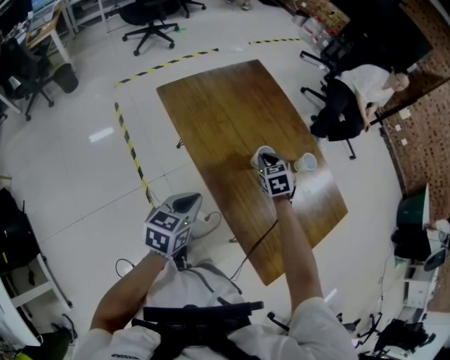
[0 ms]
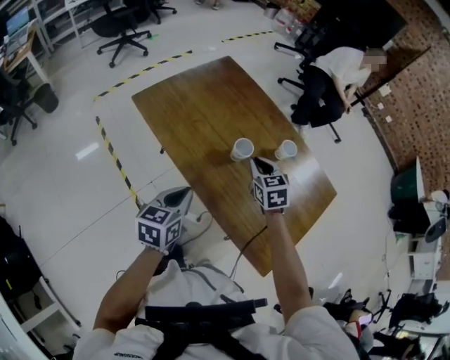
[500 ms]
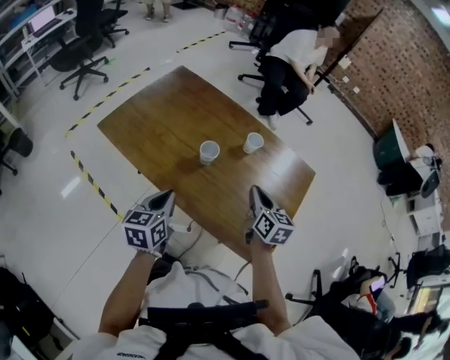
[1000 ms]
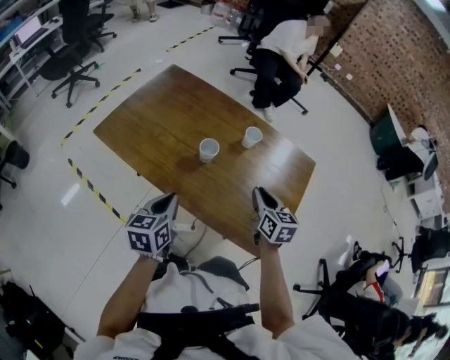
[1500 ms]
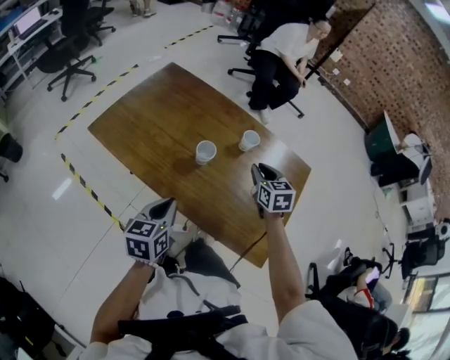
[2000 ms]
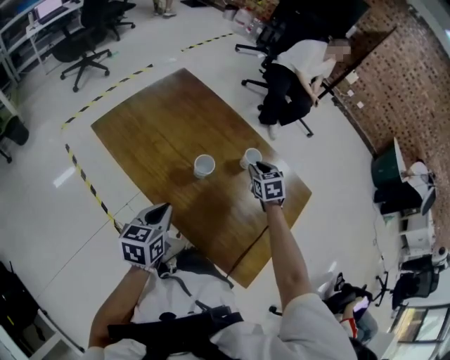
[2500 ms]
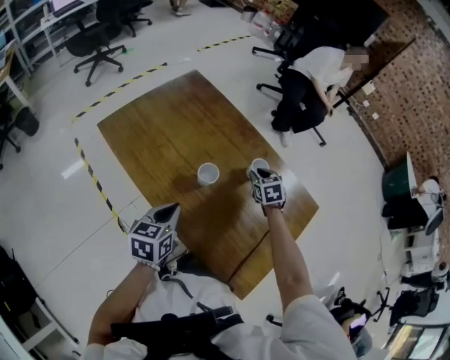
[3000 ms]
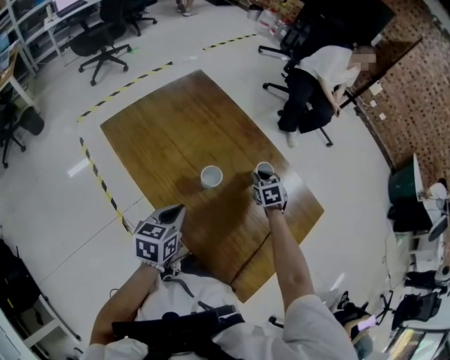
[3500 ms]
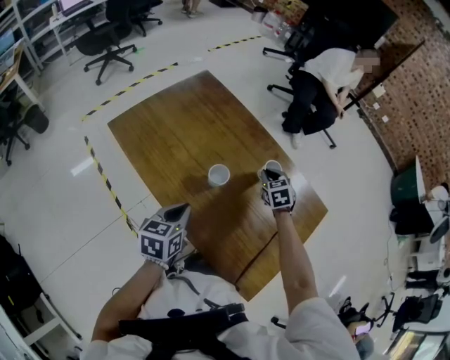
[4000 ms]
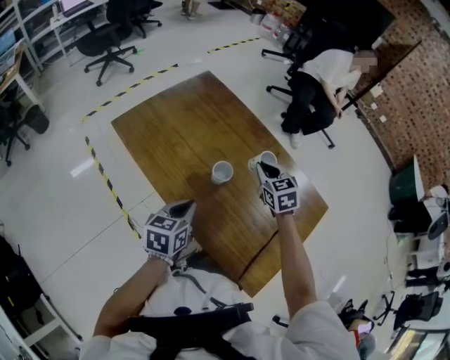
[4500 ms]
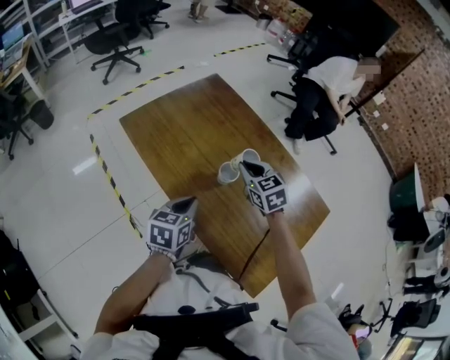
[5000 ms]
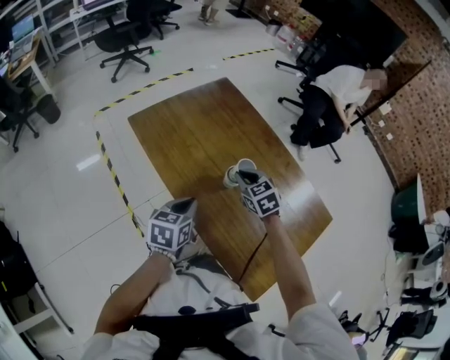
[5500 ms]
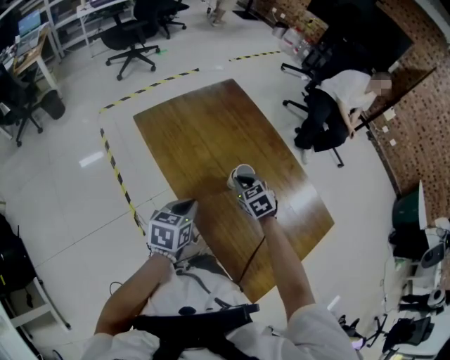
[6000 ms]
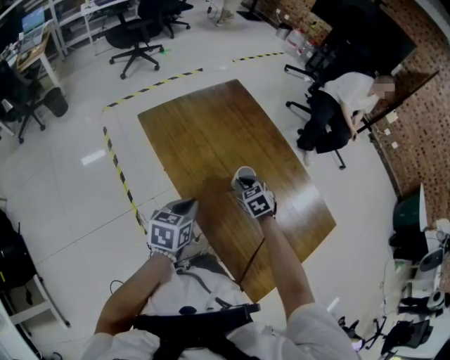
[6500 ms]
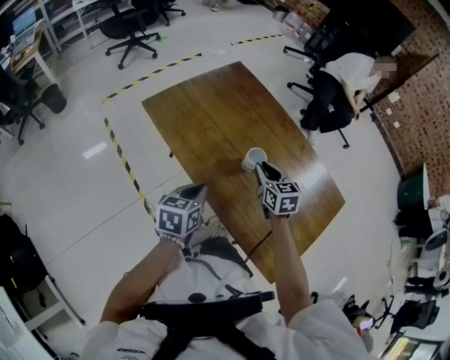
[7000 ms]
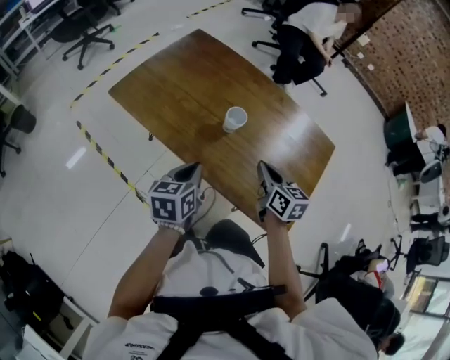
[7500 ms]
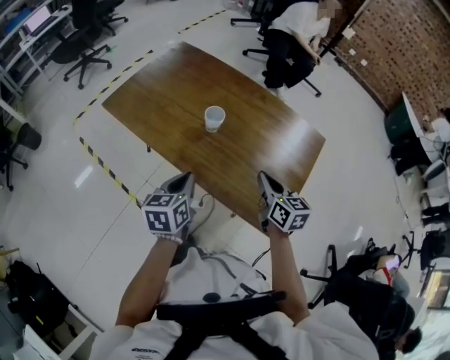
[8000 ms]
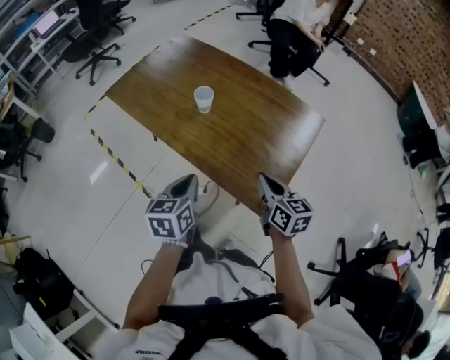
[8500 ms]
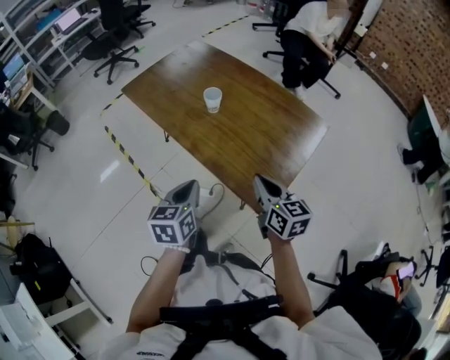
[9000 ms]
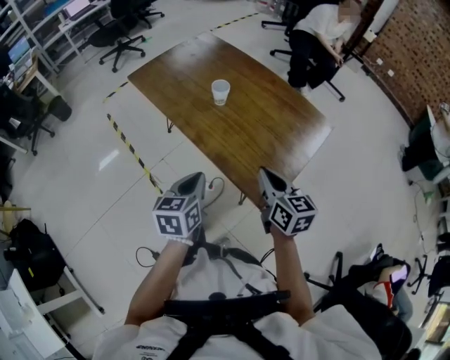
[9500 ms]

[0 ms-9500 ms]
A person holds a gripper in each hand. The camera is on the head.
0 ms to 2000 ms: The left gripper is displaced to the right by some 5 cm. The right gripper heads to the right and upward, covering approximately 20 cm, and changes its angle by some 40 degrees.
2000 ms to 4000 ms: The left gripper heads forward, covering roughly 5 cm. The right gripper heads forward and downward, covering roughly 15 cm, and changes its angle by about 30 degrees.
4000 ms to 5500 ms: The right gripper heads to the left, covering roughly 20 cm, and turns by roughly 20 degrees.
5500 ms to 7500 ms: The right gripper goes about 15 cm backward, and rotates around the line of its fingers by roughly 50 degrees, clockwise from behind.
7500 ms to 9500 ms: Both grippers travel together backward and to the right, some 20 cm.

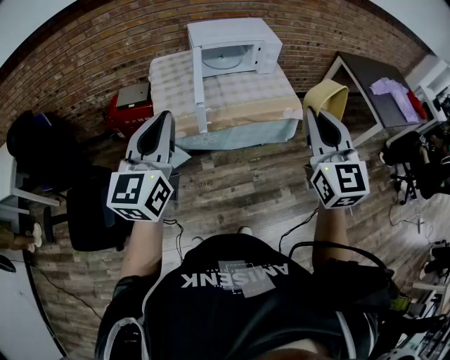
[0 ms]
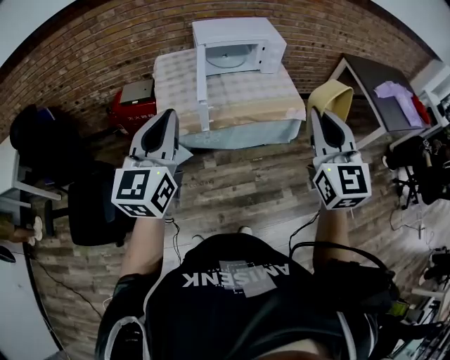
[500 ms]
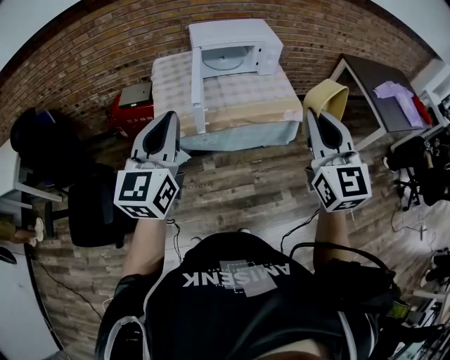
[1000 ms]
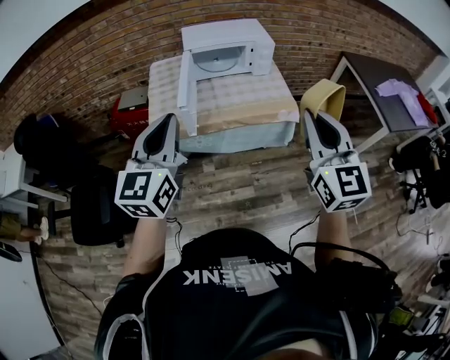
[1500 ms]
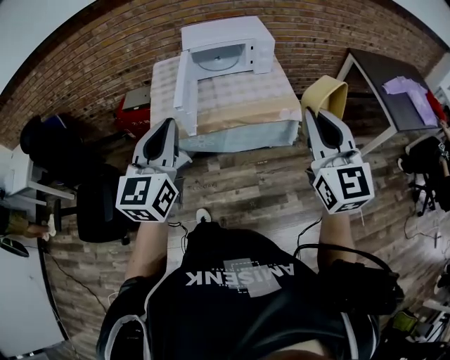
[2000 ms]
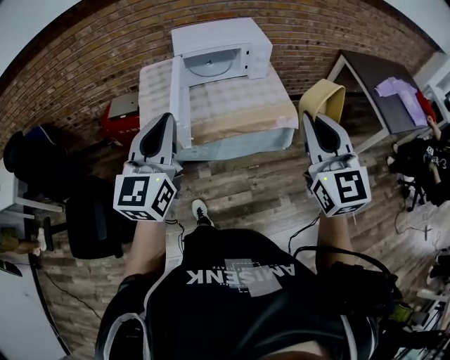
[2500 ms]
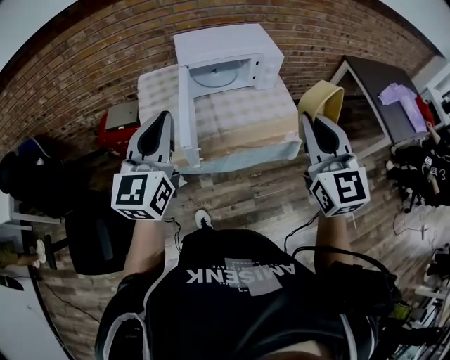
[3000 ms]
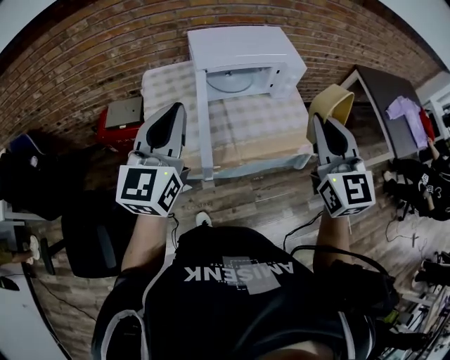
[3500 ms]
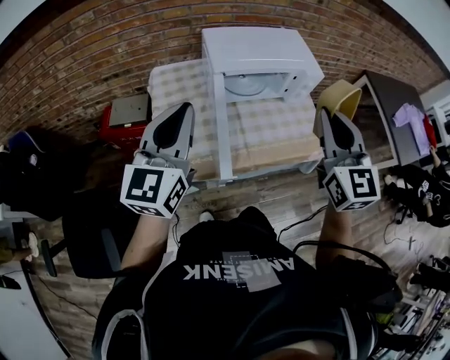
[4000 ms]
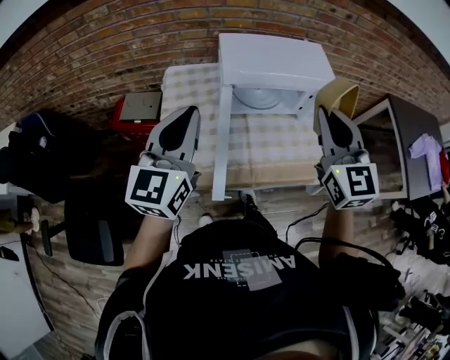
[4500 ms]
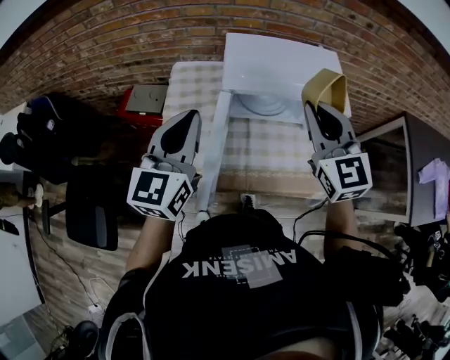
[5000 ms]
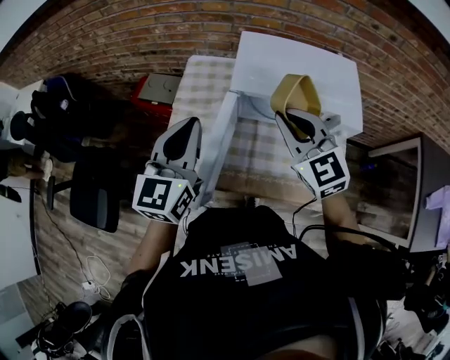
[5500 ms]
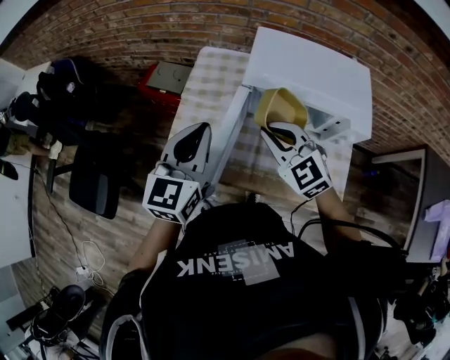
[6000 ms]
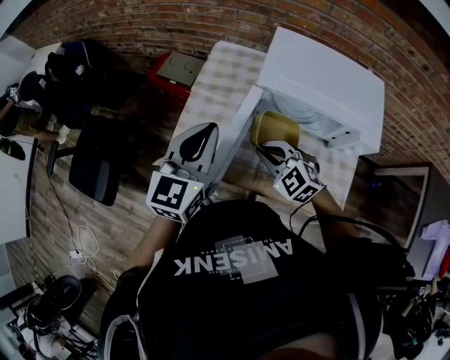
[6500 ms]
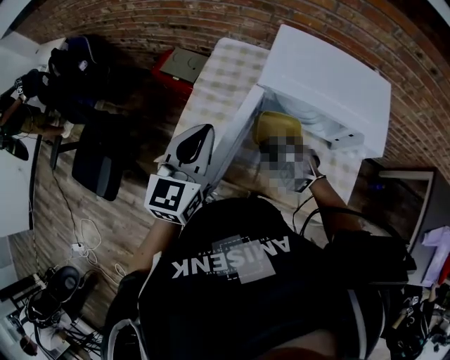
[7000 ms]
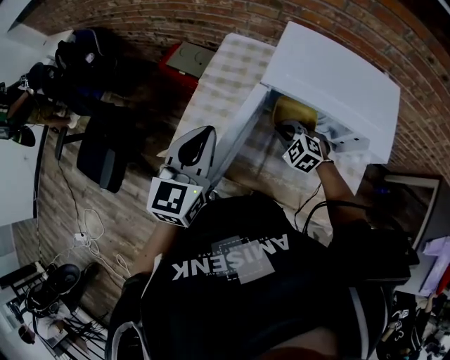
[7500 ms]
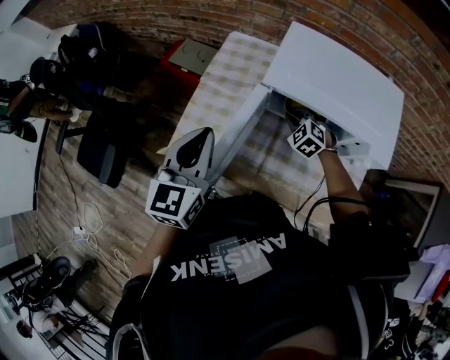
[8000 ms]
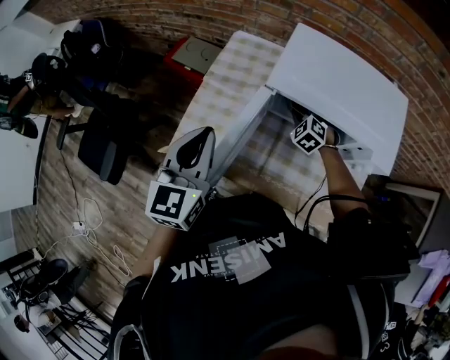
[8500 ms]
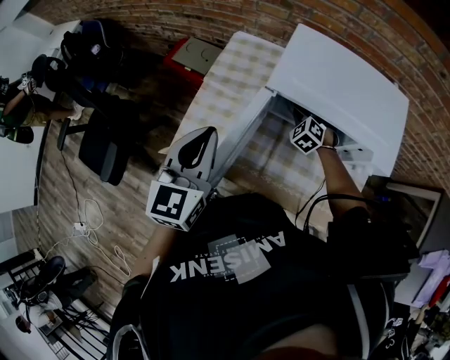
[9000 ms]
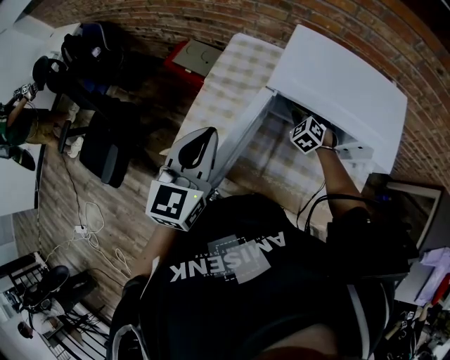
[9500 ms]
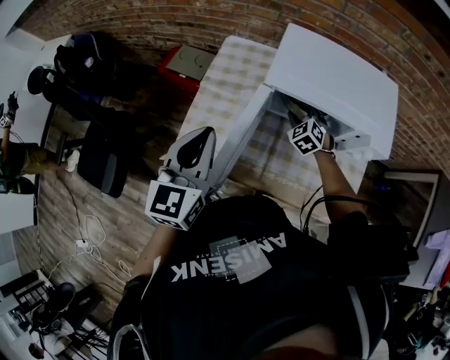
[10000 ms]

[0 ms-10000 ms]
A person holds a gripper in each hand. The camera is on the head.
0 ms to 2000 ms: Both grippers travel together to the right, approximately 15 cm.
2000 ms to 4000 ms: Both grippers move forward and to the left, roughly 40 cm.
4000 ms to 6000 ms: The left gripper shifts by roughly 15 cm, and changes its angle by some 30 degrees, while the right gripper heads downward, covering approximately 20 cm, and swivels about 60 degrees.
6000 ms to 8000 ms: The right gripper shifts some 25 cm downward, forward and to the right, and turns by about 30 degrees.
8000 ms to 10000 ms: The right gripper opens.

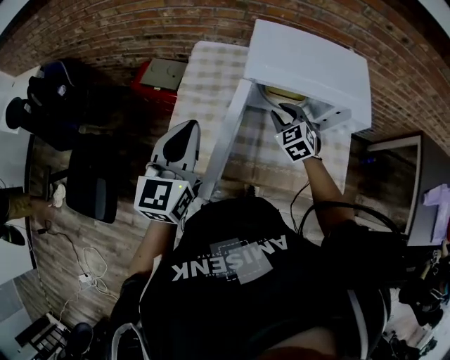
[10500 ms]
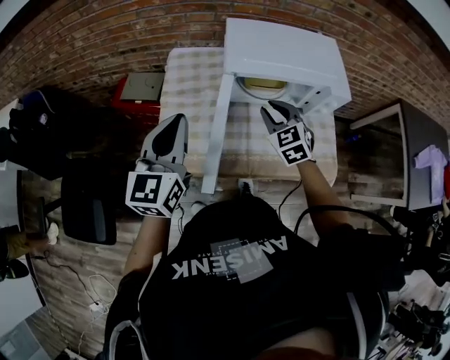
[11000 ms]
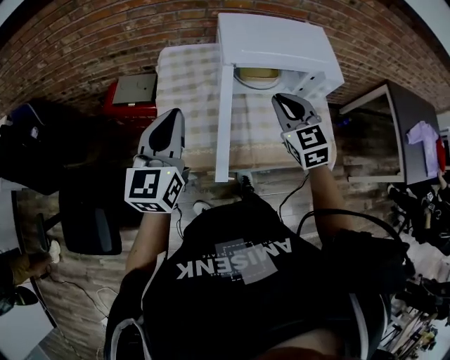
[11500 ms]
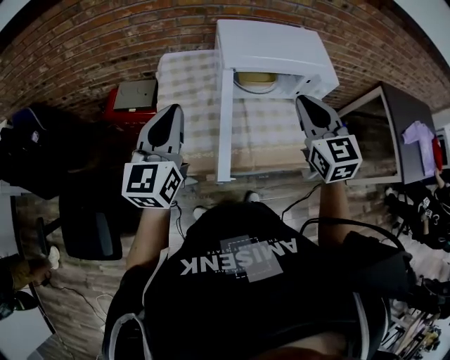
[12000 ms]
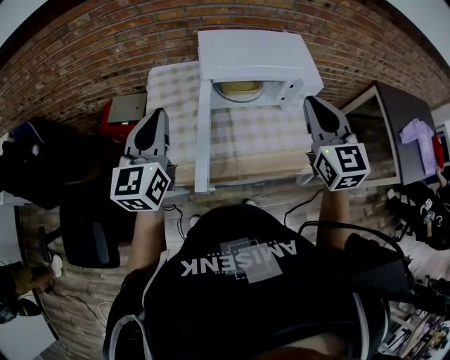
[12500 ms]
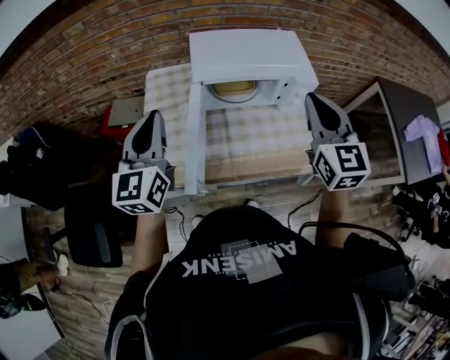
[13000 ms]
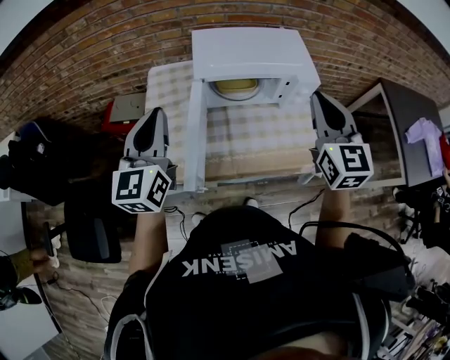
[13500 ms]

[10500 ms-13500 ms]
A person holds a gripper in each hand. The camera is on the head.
10500 ms to 12000 ms: The left gripper moves to the left, approximately 5 cm; the right gripper moves upward and backward, about 25 cm, turns by about 30 degrees, and closes up.
12000 ms to 13500 ms: The left gripper heads to the right, covering some 10 cm. Meanwhile the right gripper moves to the right and upward, roughly 15 cm.

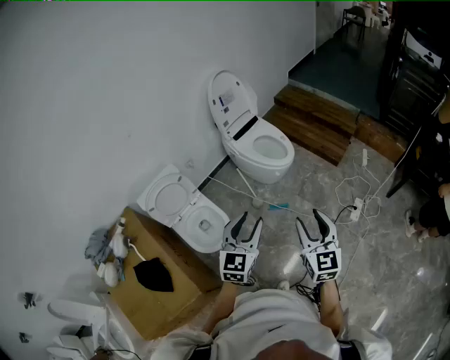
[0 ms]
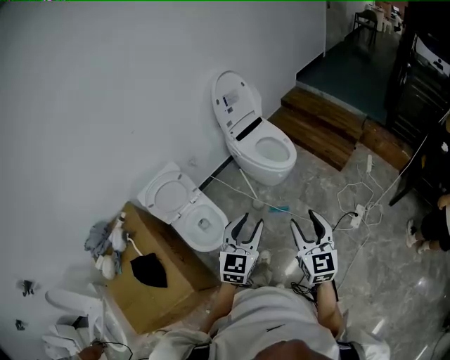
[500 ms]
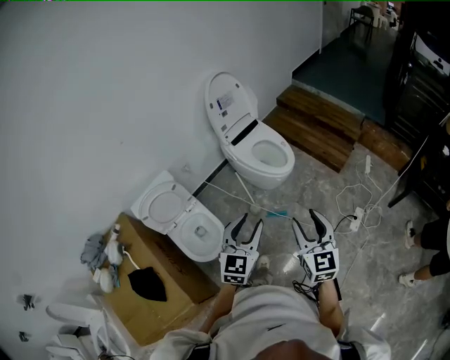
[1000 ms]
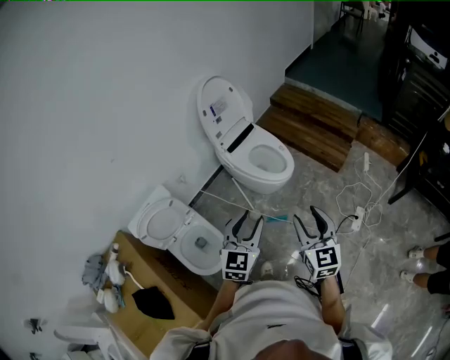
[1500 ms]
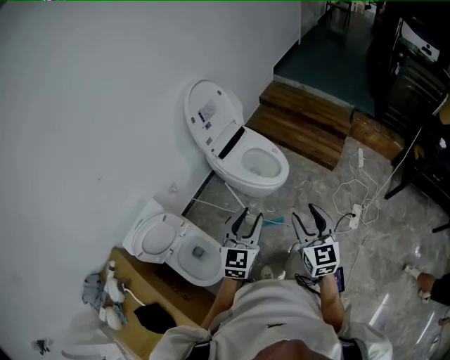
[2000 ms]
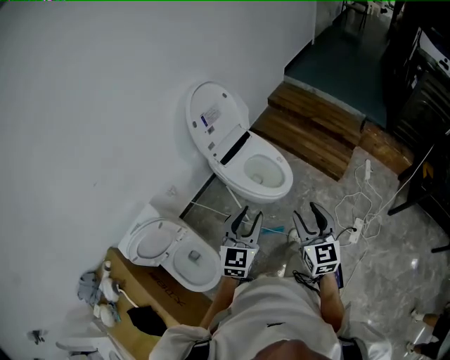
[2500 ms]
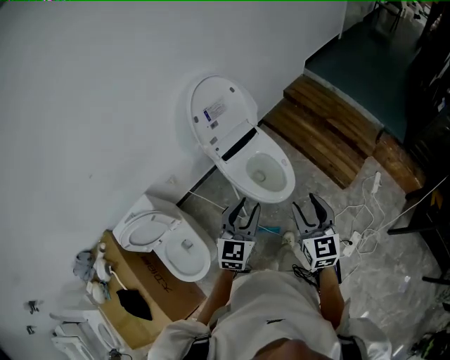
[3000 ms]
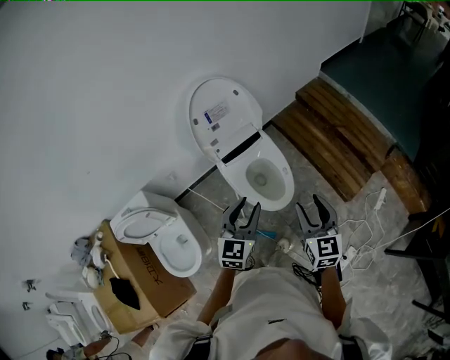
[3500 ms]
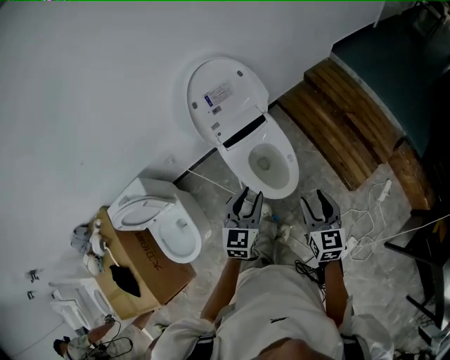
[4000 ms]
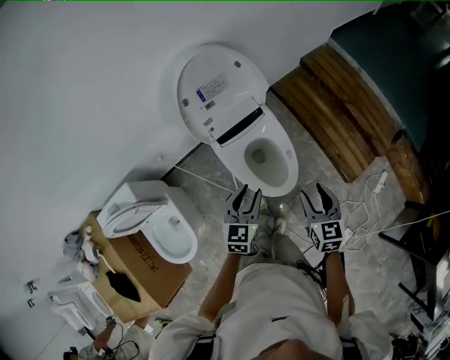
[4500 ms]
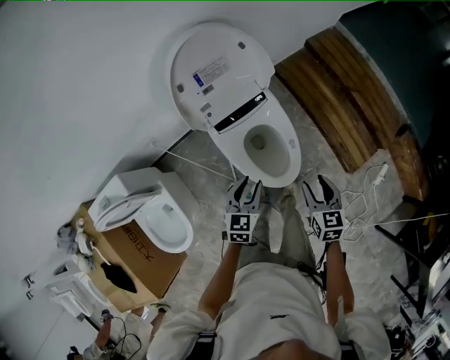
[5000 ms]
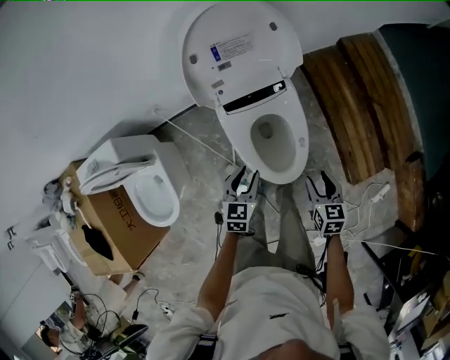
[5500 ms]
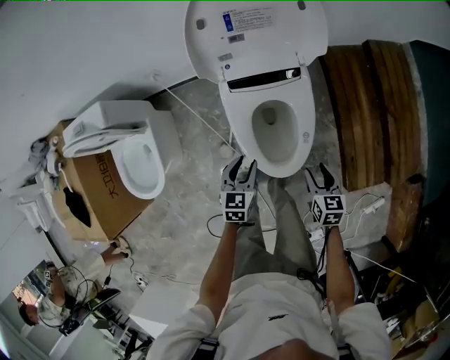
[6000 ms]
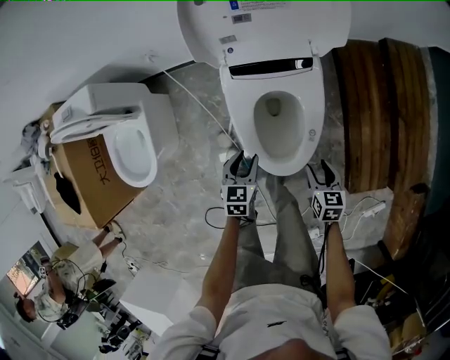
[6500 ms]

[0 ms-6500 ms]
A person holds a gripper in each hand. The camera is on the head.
0 ms to 2000 ms: The two grippers go about 25 cm forward.
2000 ms to 4500 ms: The two grippers go about 40 cm forward and downward. The right gripper changes its angle by about 30 degrees; the left gripper swivels some 30 degrees.
4500 ms to 6500 ms: Both grippers travel together downward, roughly 30 cm. The left gripper swivels about 40 degrees. The right gripper turns by roughly 30 degrees.
